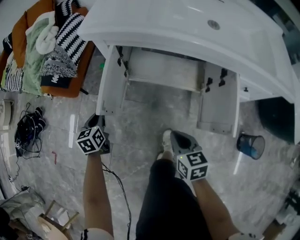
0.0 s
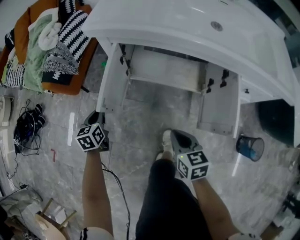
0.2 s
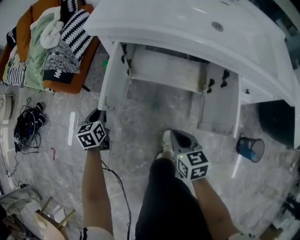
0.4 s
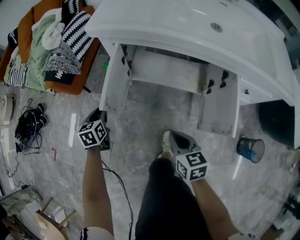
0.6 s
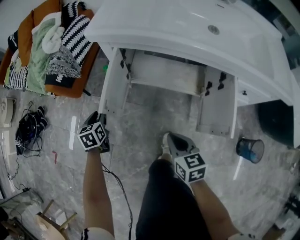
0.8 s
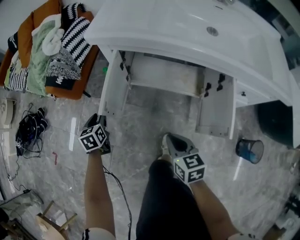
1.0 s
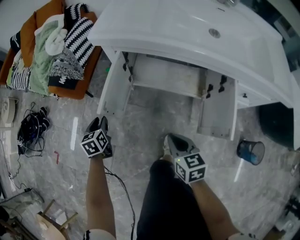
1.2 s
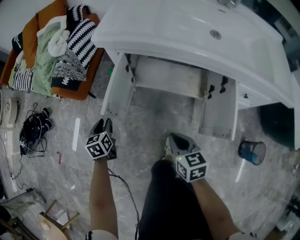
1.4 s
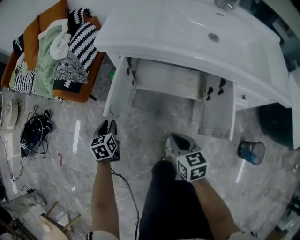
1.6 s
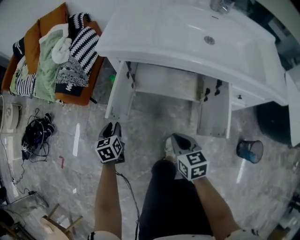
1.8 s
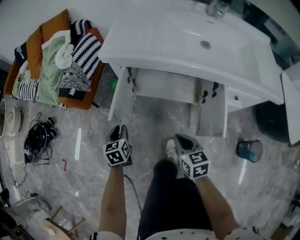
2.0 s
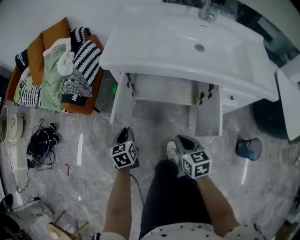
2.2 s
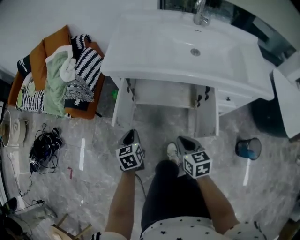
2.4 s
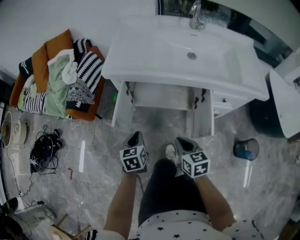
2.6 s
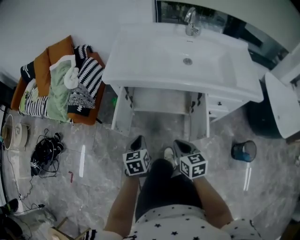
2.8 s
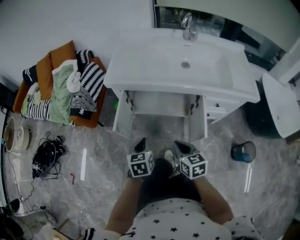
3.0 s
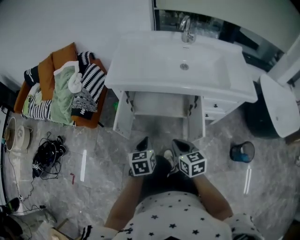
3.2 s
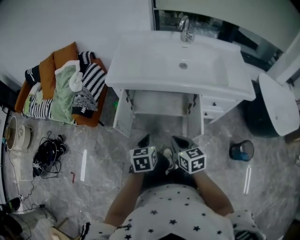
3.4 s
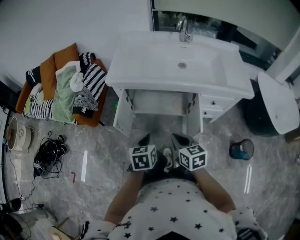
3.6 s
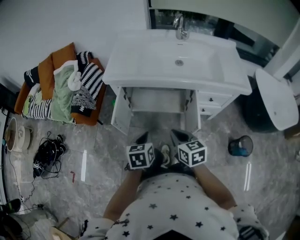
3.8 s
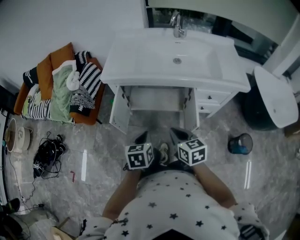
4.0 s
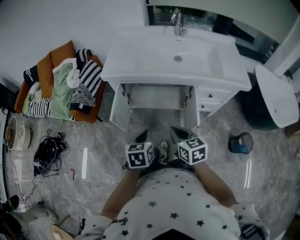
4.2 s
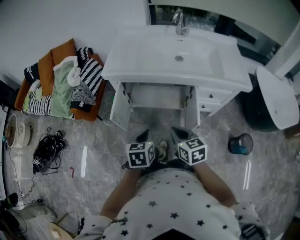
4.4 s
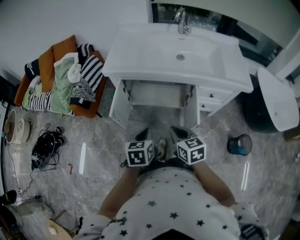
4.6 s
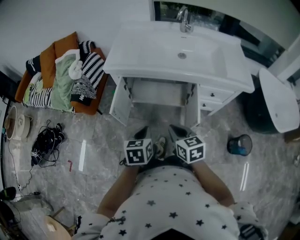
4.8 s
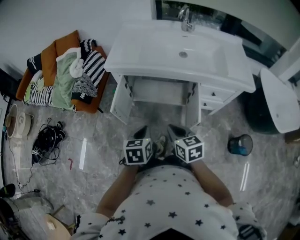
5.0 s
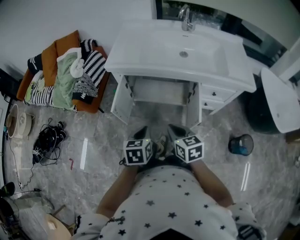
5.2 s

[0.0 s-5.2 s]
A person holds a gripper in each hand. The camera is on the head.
0.0 to 1.8 s: Both grippers move upward, approximately 5 cm. The left gripper opens.
1.8 to 3.4 s: The left gripper is displaced upward, to the right and backward by some 35 cm, and closes; the right gripper goes about 15 cm upward.
3.4 to 5.2 s: The grippers stay close to where they were, moving slightly.

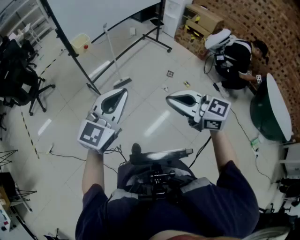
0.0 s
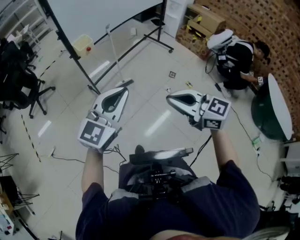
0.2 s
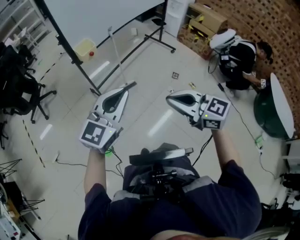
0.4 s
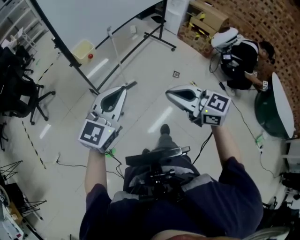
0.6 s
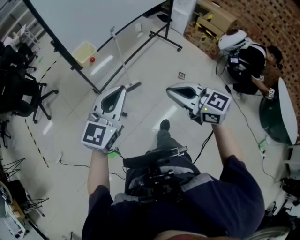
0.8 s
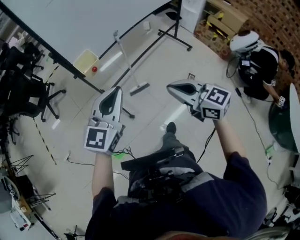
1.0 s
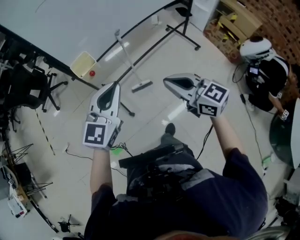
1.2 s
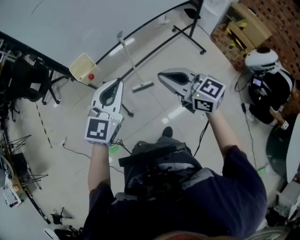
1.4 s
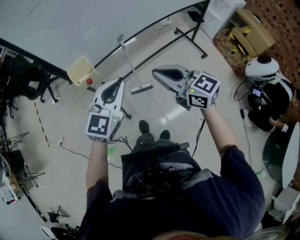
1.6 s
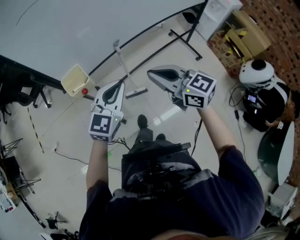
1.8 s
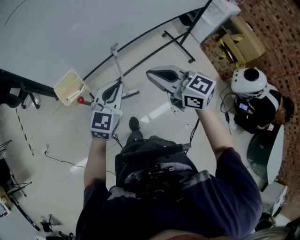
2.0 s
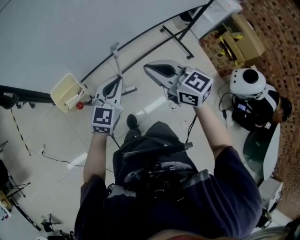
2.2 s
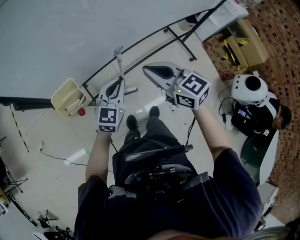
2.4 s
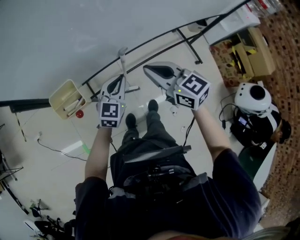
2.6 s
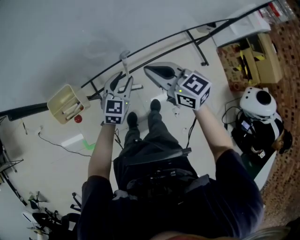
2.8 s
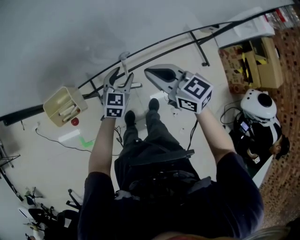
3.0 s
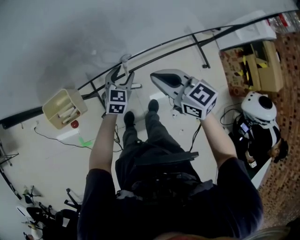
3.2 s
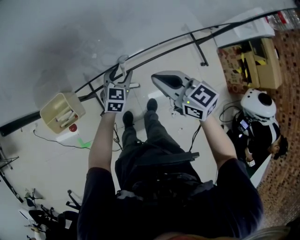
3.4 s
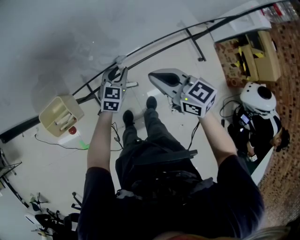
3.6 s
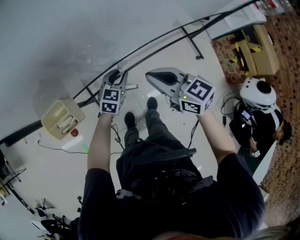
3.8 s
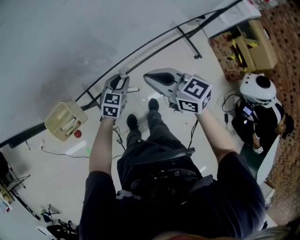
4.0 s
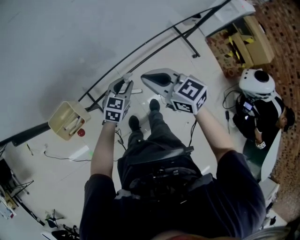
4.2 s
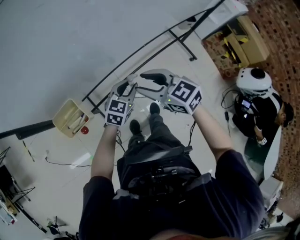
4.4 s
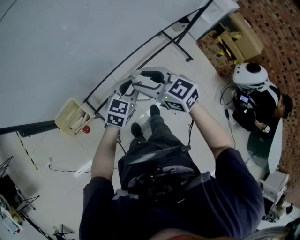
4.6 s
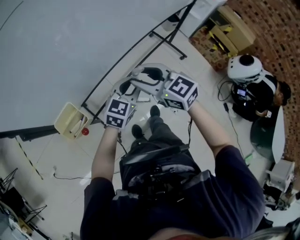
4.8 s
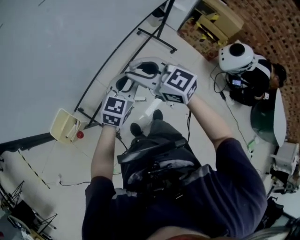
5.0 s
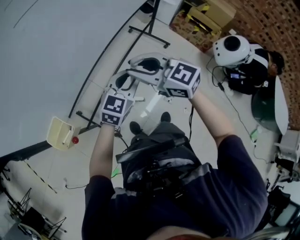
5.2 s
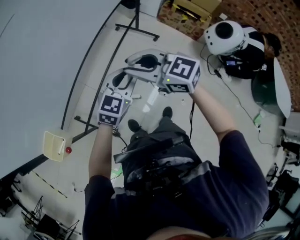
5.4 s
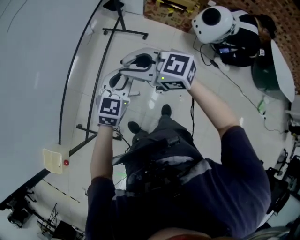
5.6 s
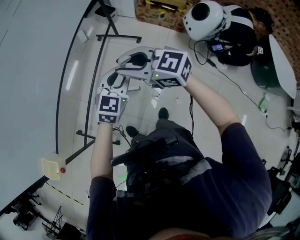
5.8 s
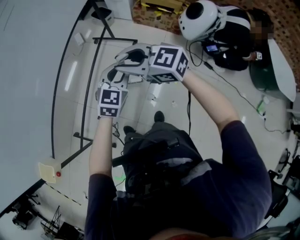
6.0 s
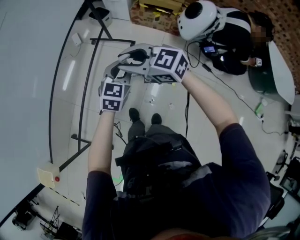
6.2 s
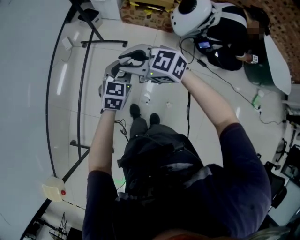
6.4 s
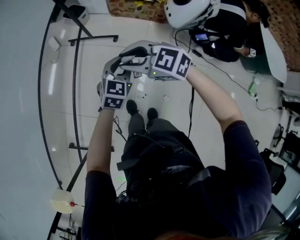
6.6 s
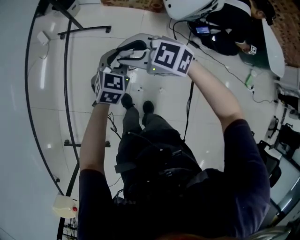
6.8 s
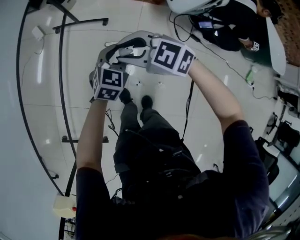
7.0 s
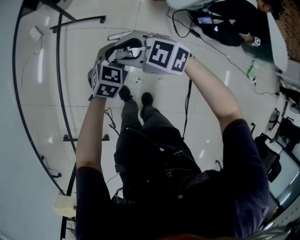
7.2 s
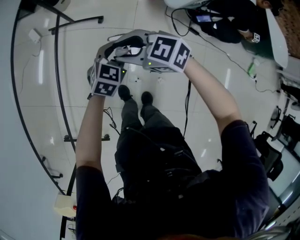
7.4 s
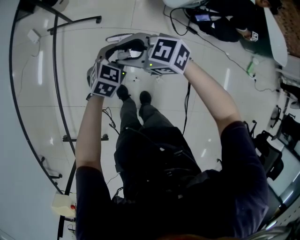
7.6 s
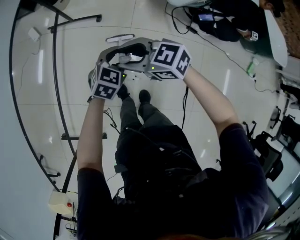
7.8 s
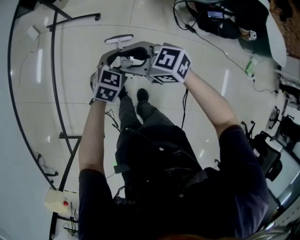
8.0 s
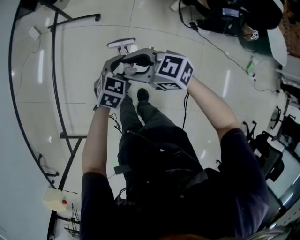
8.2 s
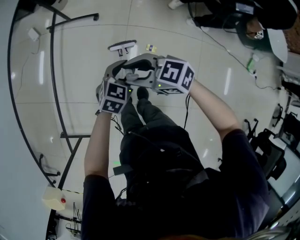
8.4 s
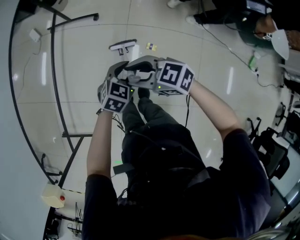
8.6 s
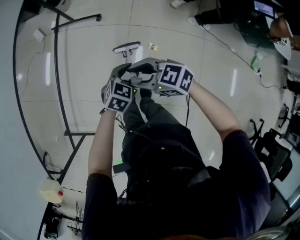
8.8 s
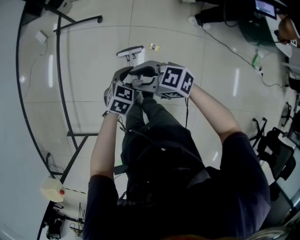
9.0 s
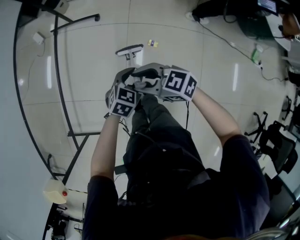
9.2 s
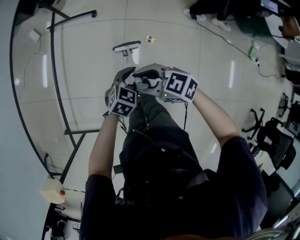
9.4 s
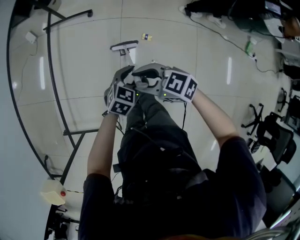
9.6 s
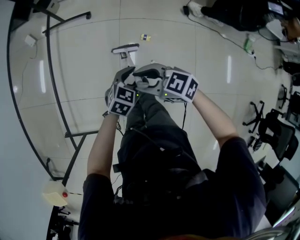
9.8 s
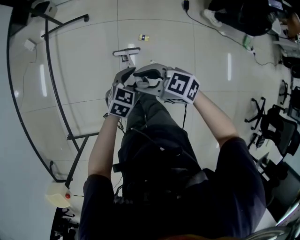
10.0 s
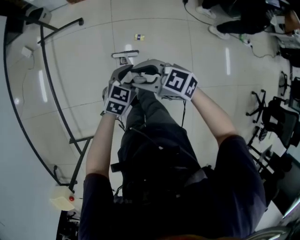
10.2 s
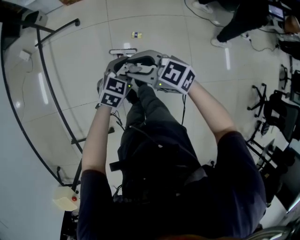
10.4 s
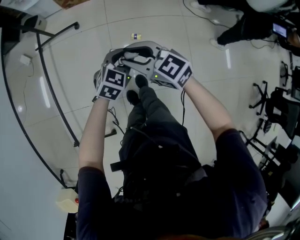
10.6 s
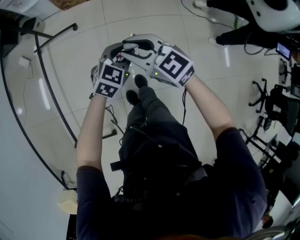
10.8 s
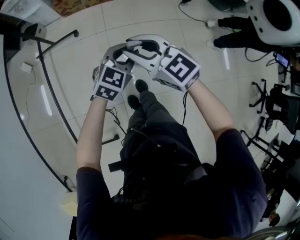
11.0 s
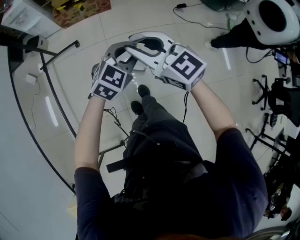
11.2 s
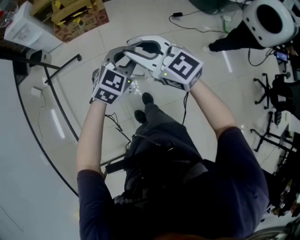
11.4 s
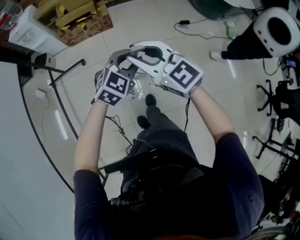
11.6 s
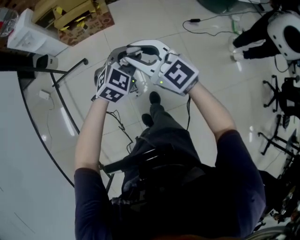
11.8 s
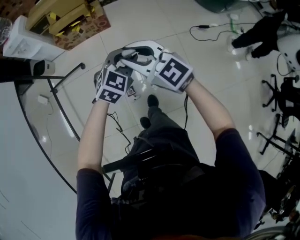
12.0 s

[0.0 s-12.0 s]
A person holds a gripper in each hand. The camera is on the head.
0.0 to 1.6 s: Both grippers are carried forward, approximately 50 cm. The left gripper changes its angle by approximately 30 degrees.
1.6 to 3.0 s: The right gripper goes roughly 30 cm forward and downward; the left gripper shifts about 40 cm downward and forward, swivels some 30 degrees, and opens its fingers.
3.0 to 4.4 s: The left gripper is displaced backward by approximately 5 cm, swivels some 20 degrees, and closes its fingers. Meanwhile the right gripper opens its fingers.
4.4 to 6.0 s: Both grippers are carried to the right, some 50 cm. The right gripper swivels approximately 20 degrees, and closes up. The left gripper turns by some 40 degrees.
6.0 to 7.6 s: Both grippers travel together downward and to the right, approximately 25 cm. The right gripper turns by roughly 20 degrees. The left gripper rotates approximately 30 degrees.
7.6 to 9.0 s: The right gripper ends up about 20 cm from where it was. The left gripper moves some 20 cm.
9.0 to 10.4 s: The right gripper shifts by approximately 5 cm, and turns by approximately 20 degrees, while the left gripper moves approximately 5 cm.
10.4 to 12.0 s: Both grippers travel together forward, upward and to the right, some 25 cm. The right gripper rotates some 30 degrees. The left gripper rotates about 30 degrees.

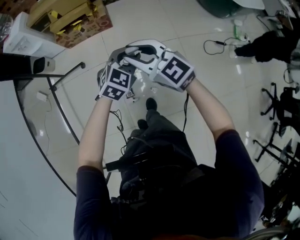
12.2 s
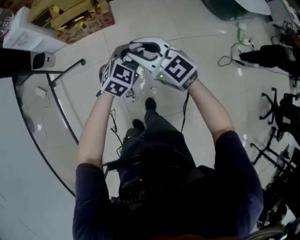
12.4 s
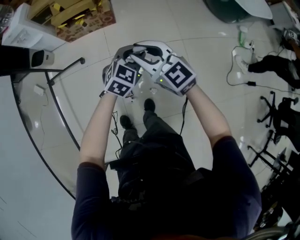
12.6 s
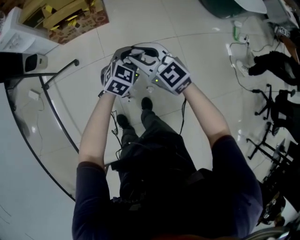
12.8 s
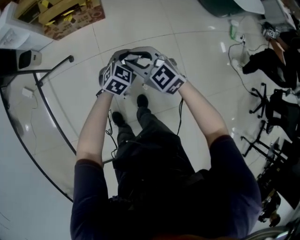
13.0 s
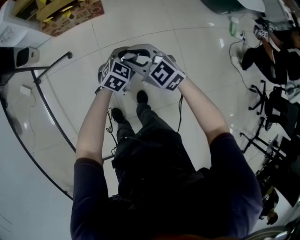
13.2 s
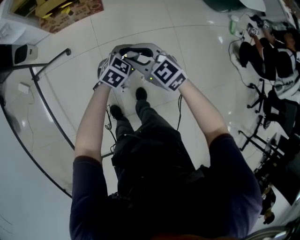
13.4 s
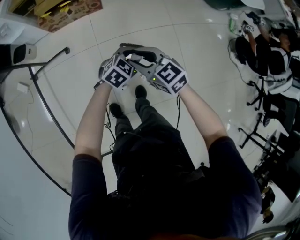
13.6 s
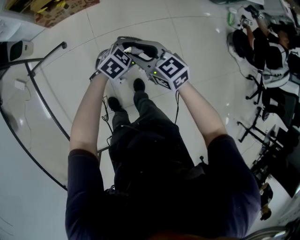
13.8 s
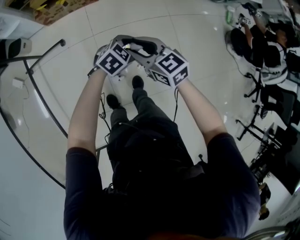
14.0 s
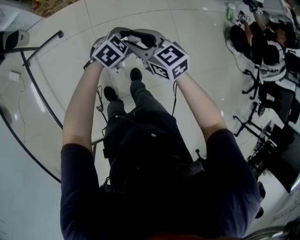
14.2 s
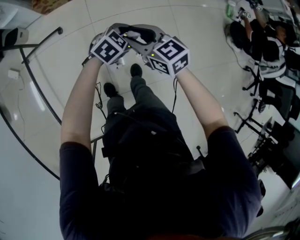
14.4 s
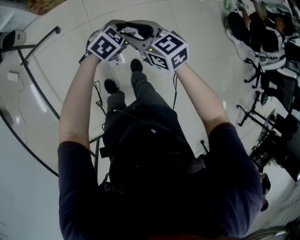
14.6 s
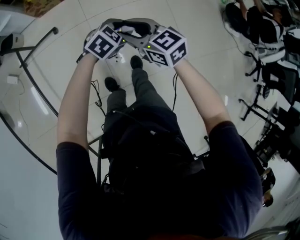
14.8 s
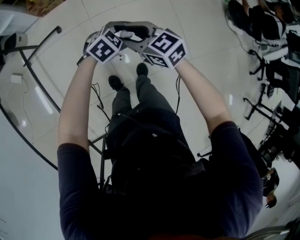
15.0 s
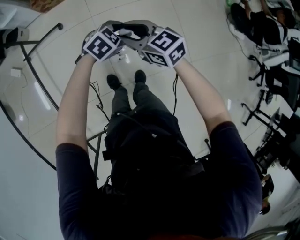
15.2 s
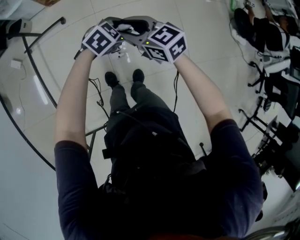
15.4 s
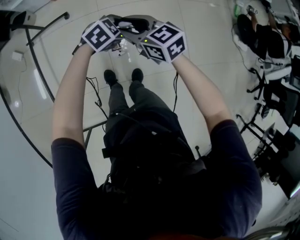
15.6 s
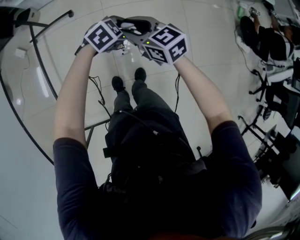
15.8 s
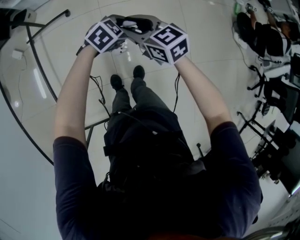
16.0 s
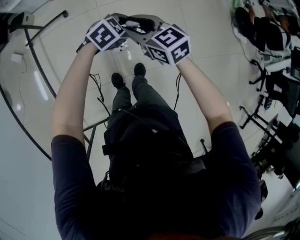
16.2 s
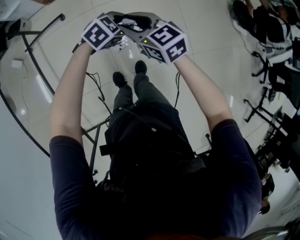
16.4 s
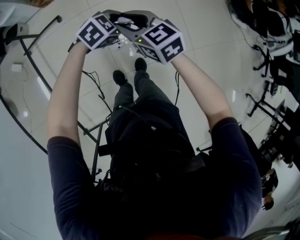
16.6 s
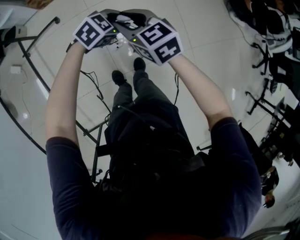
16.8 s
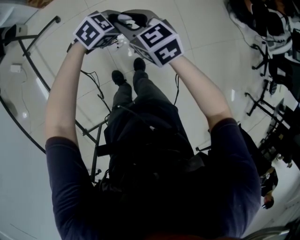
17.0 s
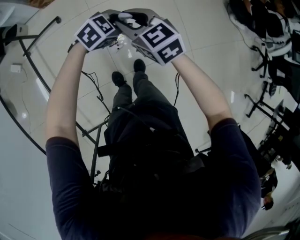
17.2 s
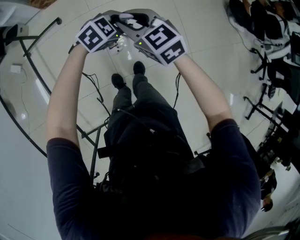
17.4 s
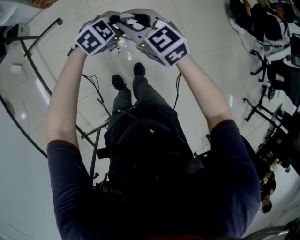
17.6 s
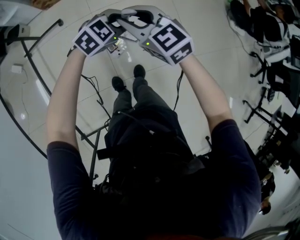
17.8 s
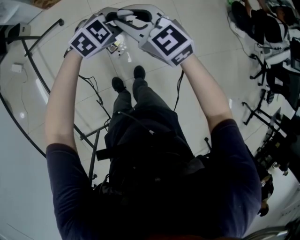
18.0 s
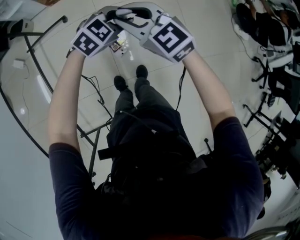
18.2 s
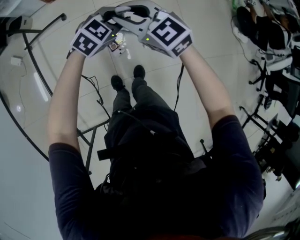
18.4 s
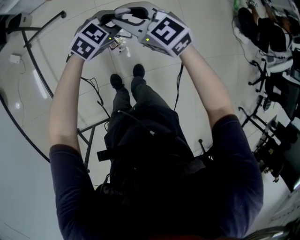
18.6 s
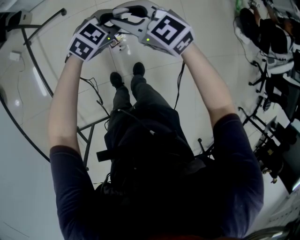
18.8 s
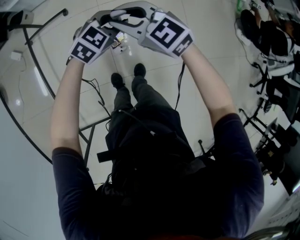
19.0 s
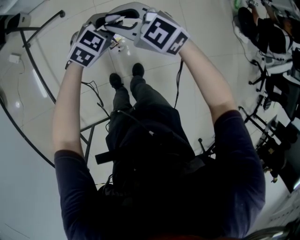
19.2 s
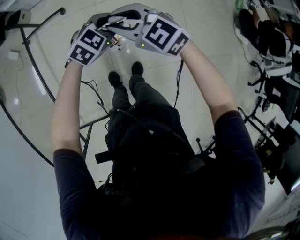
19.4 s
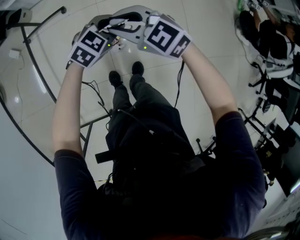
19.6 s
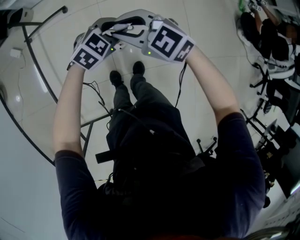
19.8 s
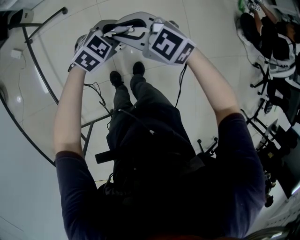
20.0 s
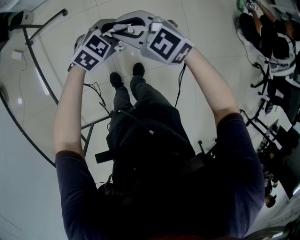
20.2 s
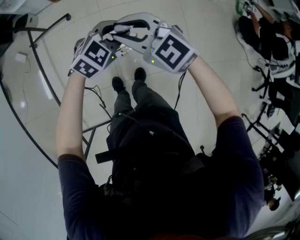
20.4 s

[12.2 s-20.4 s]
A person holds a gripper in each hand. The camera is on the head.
12.2 to 13.8 s: The grippers both shift downward by roughly 15 cm. The left gripper rotates roughly 20 degrees. Meanwhile the right gripper changes its angle by some 20 degrees.
13.8 to 15.4 s: The left gripper shifts by roughly 10 cm, while the right gripper changes place by approximately 10 cm.
15.4 to 17.2 s: The left gripper changes place by some 5 cm.
17.2 to 18.8 s: The left gripper shifts some 5 cm to the left. Meanwhile the right gripper shifts by some 5 cm, and turns by approximately 30 degrees.
18.8 to 20.4 s: The right gripper shifts by approximately 5 cm. Meanwhile the left gripper changes place by approximately 5 cm.
